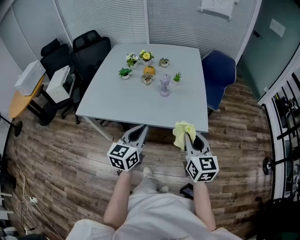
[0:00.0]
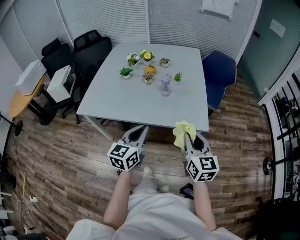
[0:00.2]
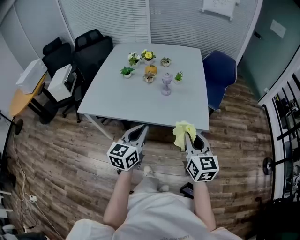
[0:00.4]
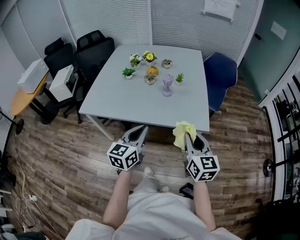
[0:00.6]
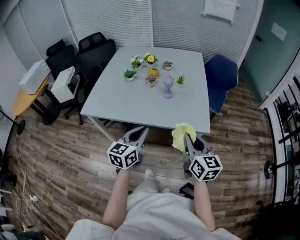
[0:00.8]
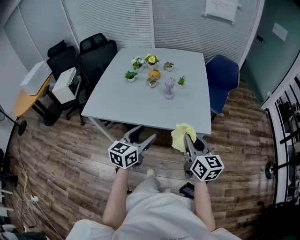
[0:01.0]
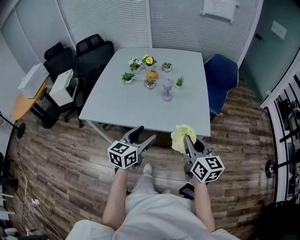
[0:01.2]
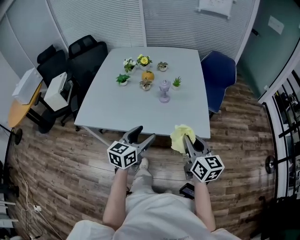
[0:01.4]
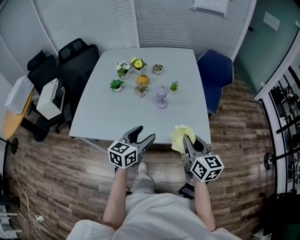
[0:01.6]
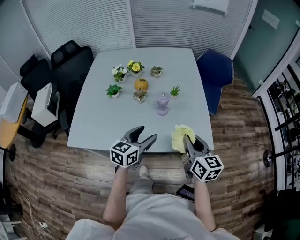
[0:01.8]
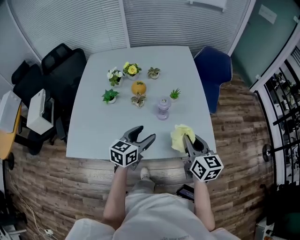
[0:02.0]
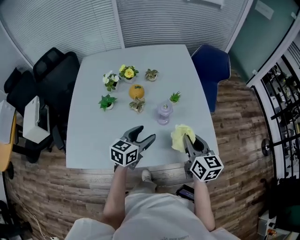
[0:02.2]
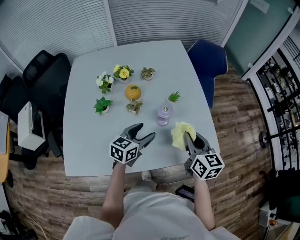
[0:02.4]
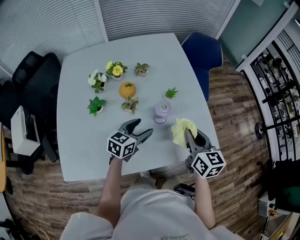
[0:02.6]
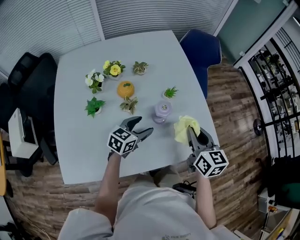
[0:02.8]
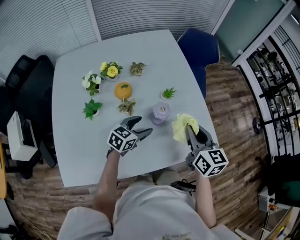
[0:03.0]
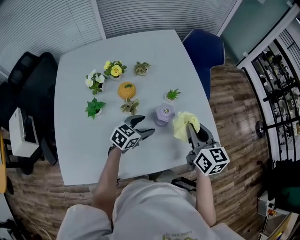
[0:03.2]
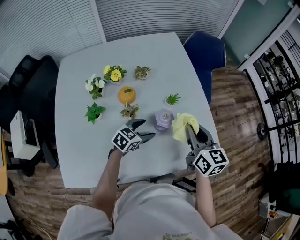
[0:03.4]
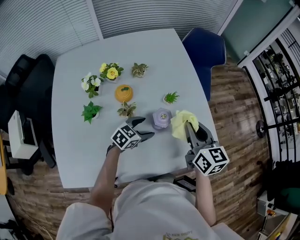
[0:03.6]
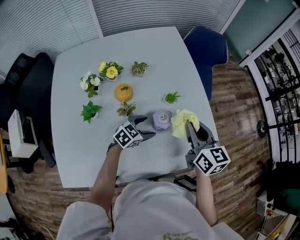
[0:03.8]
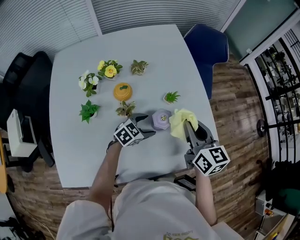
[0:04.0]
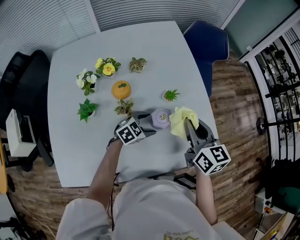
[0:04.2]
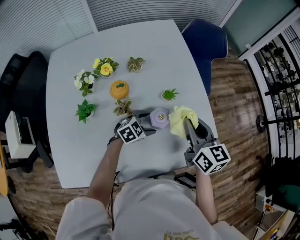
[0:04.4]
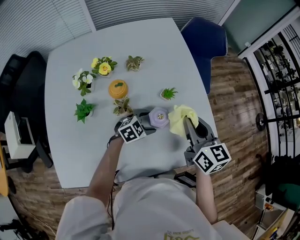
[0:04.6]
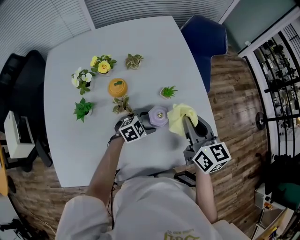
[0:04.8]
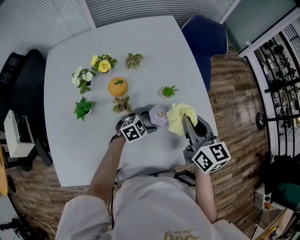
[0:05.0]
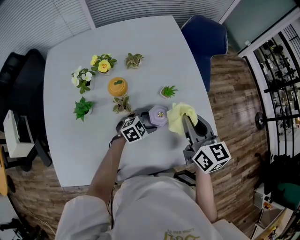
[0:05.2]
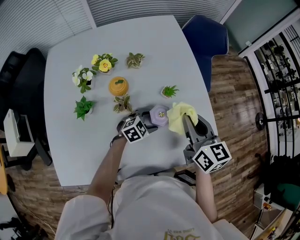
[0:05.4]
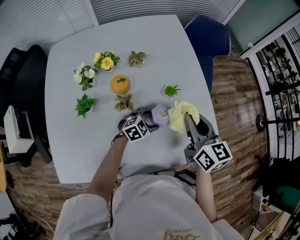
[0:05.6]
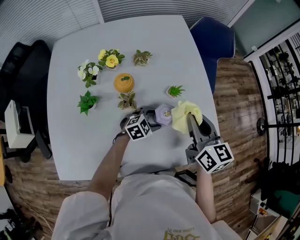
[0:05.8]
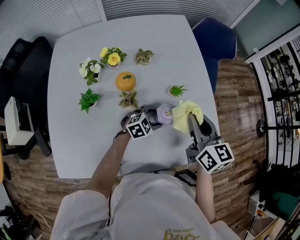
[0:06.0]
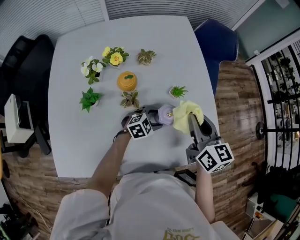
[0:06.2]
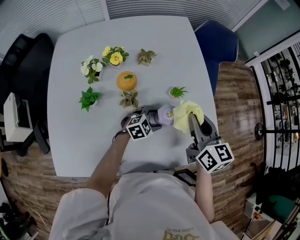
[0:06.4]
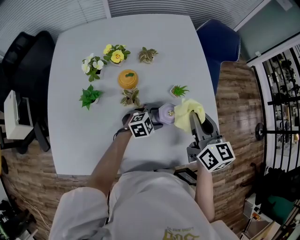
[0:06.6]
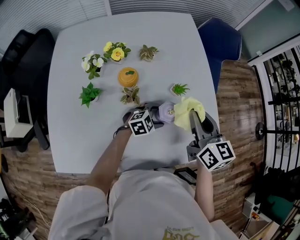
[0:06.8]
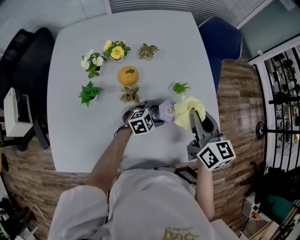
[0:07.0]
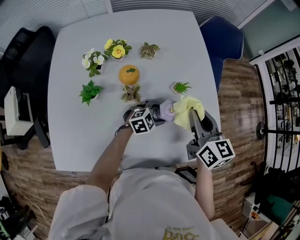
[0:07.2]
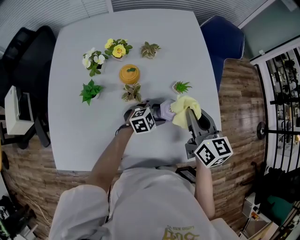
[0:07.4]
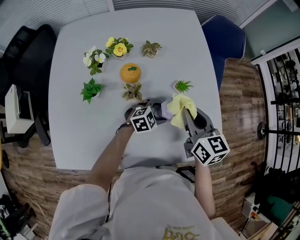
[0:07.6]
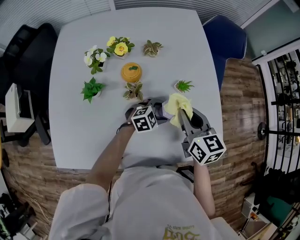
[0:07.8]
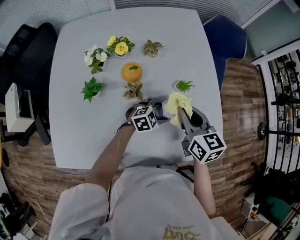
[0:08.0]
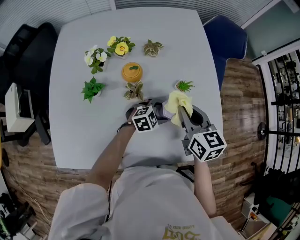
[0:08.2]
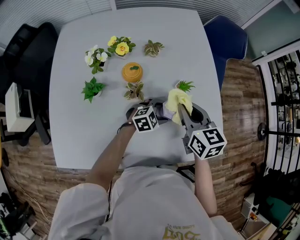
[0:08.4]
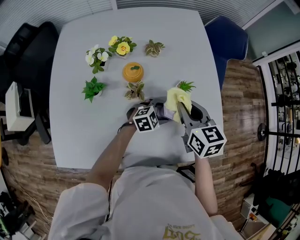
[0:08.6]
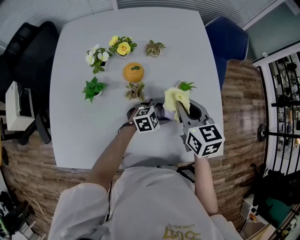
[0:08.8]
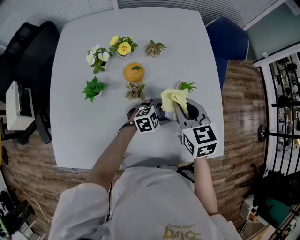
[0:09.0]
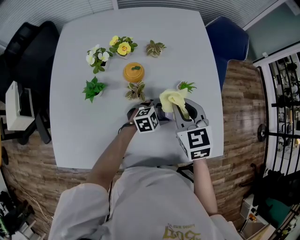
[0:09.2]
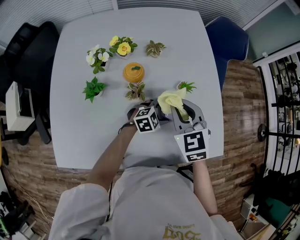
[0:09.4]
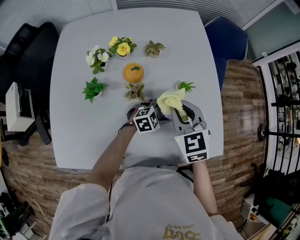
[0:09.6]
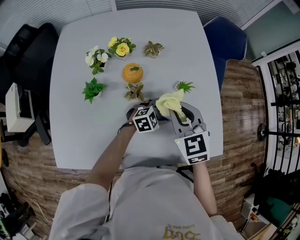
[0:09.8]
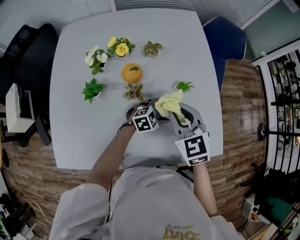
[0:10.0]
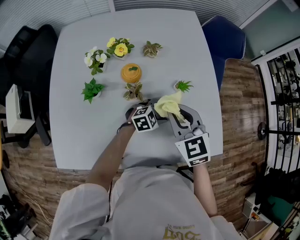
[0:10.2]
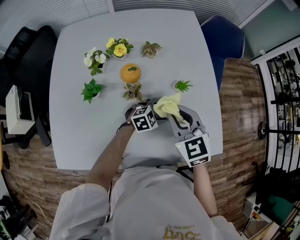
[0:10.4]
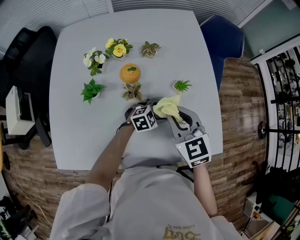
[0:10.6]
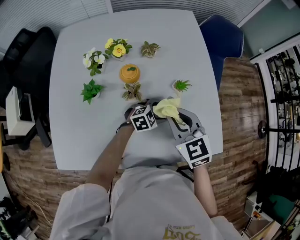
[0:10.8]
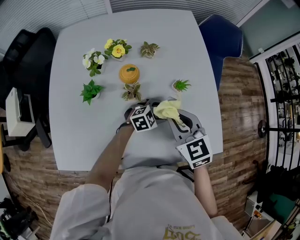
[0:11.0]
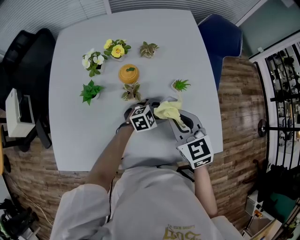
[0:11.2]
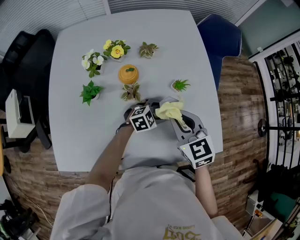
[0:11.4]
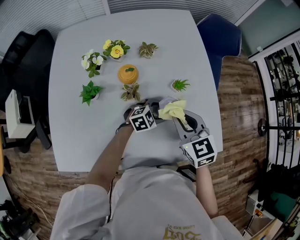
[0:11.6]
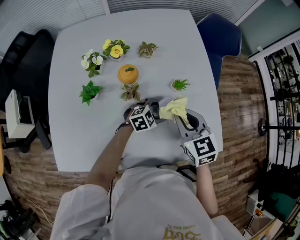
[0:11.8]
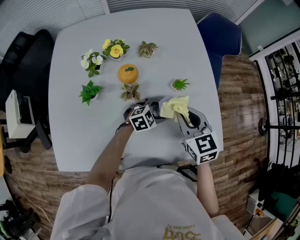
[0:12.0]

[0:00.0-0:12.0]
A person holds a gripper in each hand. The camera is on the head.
0:00.0 to 0:01.6: The grippers both shift forward by roughly 10 cm. The left gripper opens its fingers.
0:01.6 to 0:03.0: The left gripper shifts by approximately 30 cm, and rotates roughly 40 degrees, while the right gripper changes place by some 20 cm, and changes its angle by about 20 degrees.
0:03.0 to 0:04.4: The right gripper is displaced forward by approximately 5 cm. Meanwhile the left gripper is displaced downward and forward by some 10 cm, and rotates about 30 degrees.
0:04.4 to 0:07.6: There are only small adjustments of the grippers.
0:07.6 to 0:09.0: The right gripper heads to the left, covering some 5 cm.
0:09.0 to 0:10.4: The grippers stay close to where they were, moving slightly.
0:10.4 to 0:12.0: The right gripper moves approximately 5 cm.

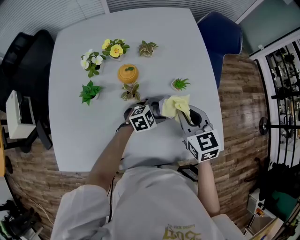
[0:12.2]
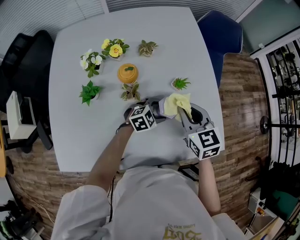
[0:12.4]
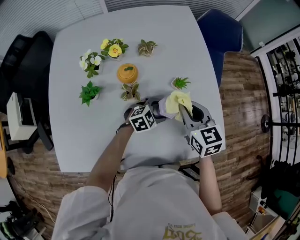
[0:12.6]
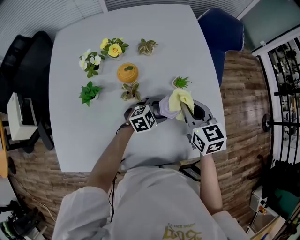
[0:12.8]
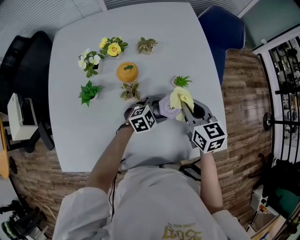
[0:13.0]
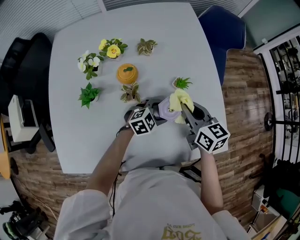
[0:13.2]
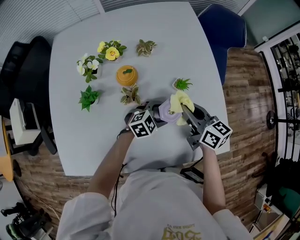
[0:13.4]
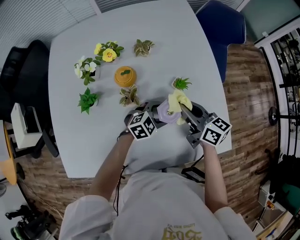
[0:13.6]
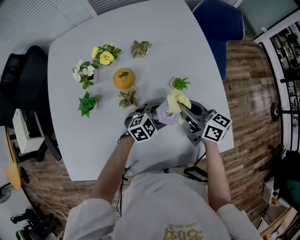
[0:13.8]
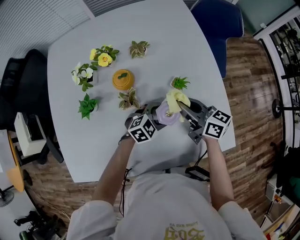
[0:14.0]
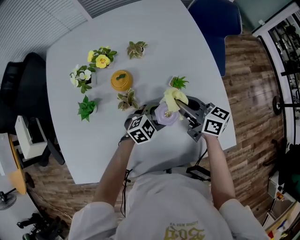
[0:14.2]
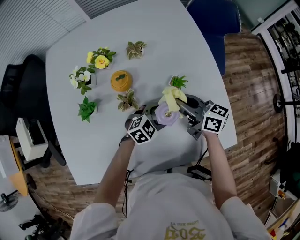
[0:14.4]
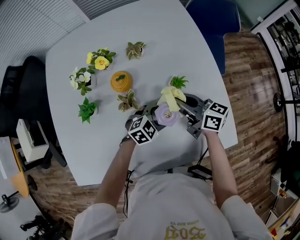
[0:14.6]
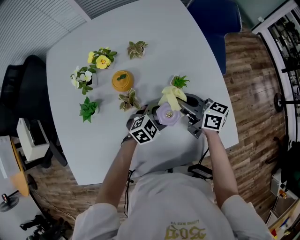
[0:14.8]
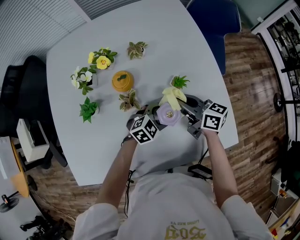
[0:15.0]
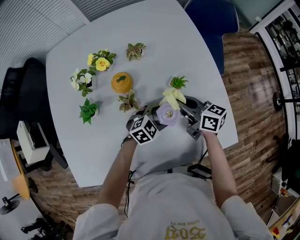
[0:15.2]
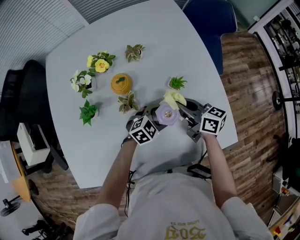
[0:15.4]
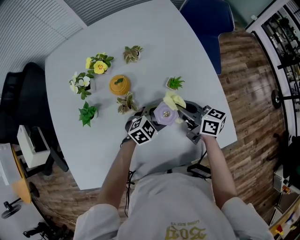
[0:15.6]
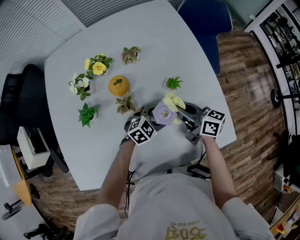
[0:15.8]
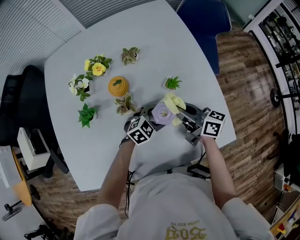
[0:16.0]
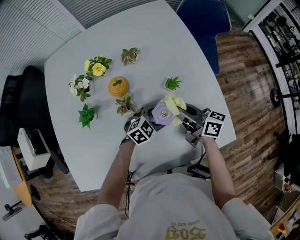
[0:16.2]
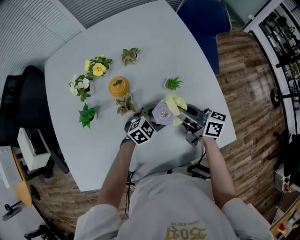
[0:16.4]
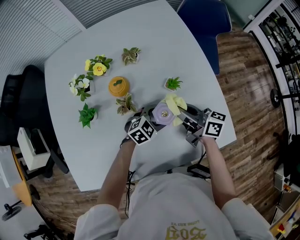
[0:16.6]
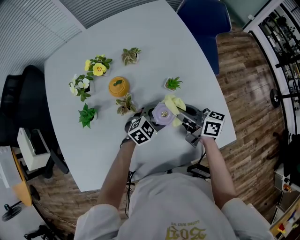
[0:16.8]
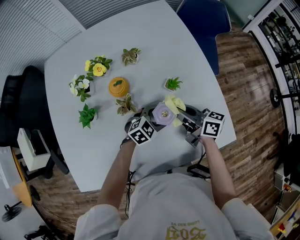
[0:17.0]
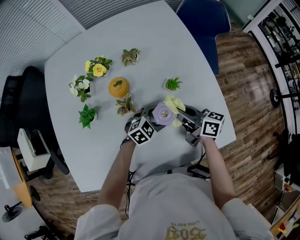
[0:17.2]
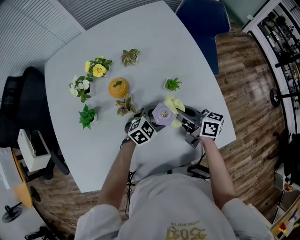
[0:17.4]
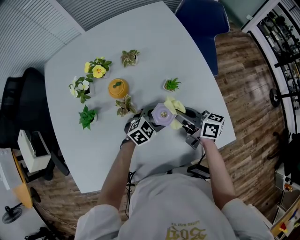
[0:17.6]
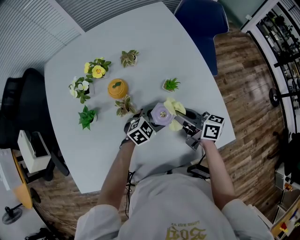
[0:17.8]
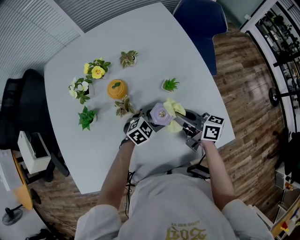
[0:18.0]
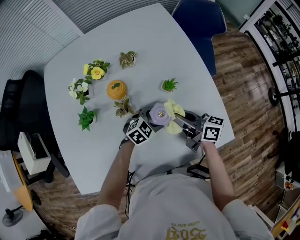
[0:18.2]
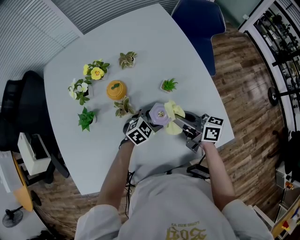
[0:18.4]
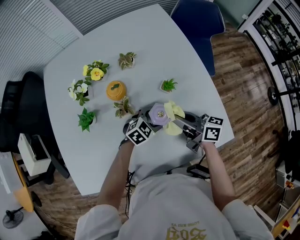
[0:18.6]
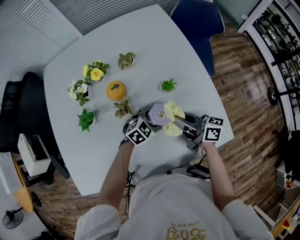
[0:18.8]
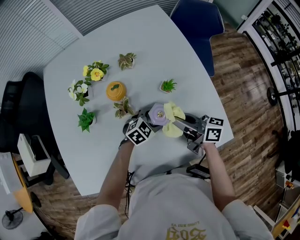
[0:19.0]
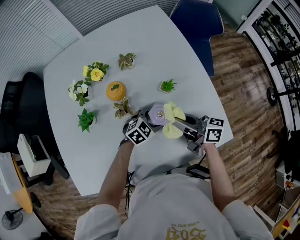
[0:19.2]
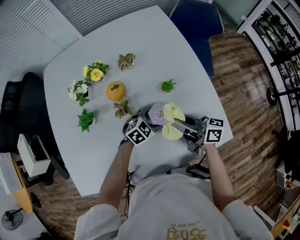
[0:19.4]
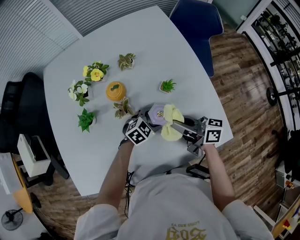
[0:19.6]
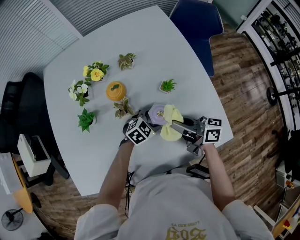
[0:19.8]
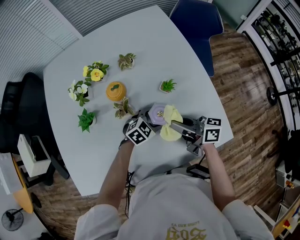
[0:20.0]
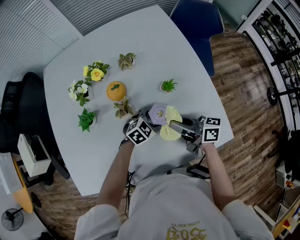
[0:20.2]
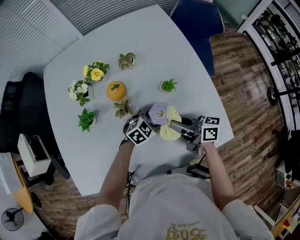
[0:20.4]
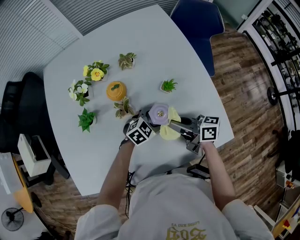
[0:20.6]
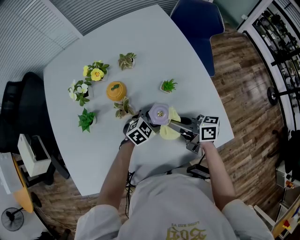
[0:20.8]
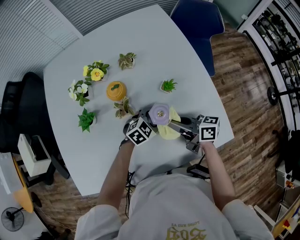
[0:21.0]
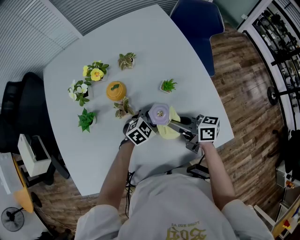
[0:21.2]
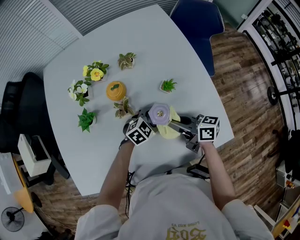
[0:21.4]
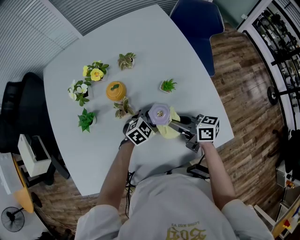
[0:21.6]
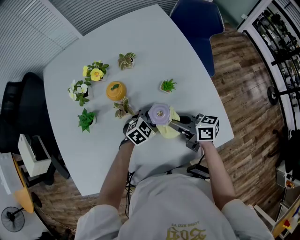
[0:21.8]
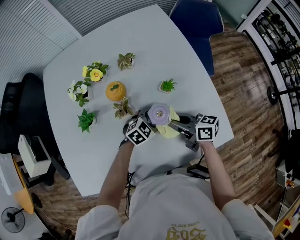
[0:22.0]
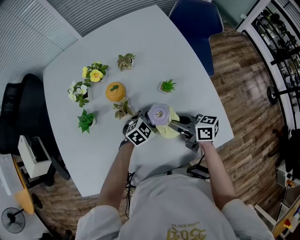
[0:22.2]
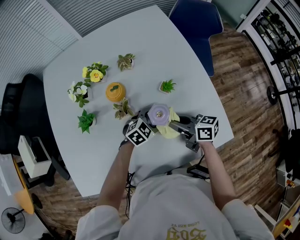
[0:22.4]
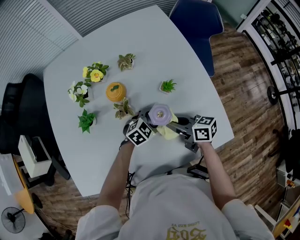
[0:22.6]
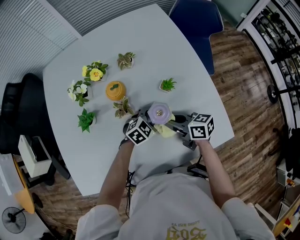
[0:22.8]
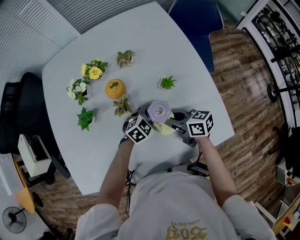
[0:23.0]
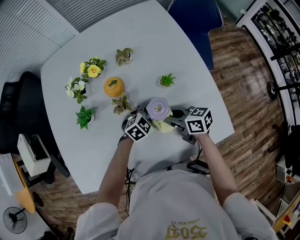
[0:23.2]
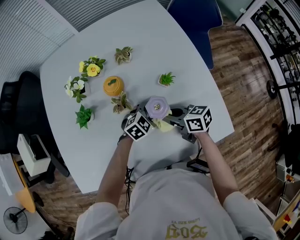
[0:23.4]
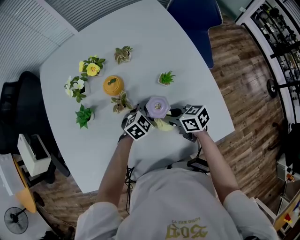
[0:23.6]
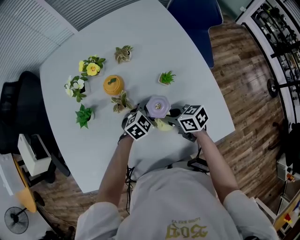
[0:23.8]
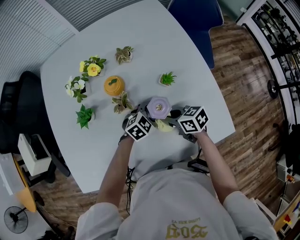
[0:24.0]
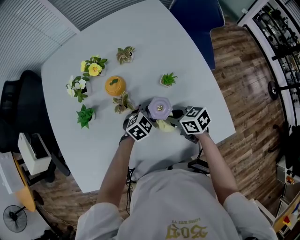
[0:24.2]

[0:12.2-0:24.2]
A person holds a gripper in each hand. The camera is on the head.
0:12.2 to 0:13.8: The right gripper moves about 5 cm, and turns by roughly 40 degrees.
0:13.8 to 0:18.2: The grippers stay close to where they were, moving slightly.
0:18.2 to 0:22.6: The grippers stay close to where they were, moving slightly.
0:22.6 to 0:24.2: The right gripper changes its angle by approximately 20 degrees.
